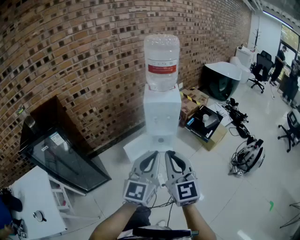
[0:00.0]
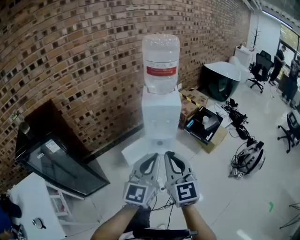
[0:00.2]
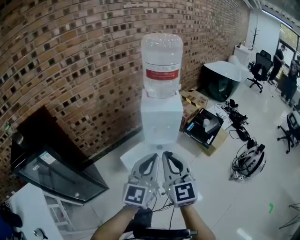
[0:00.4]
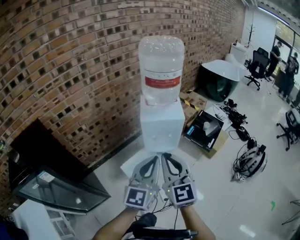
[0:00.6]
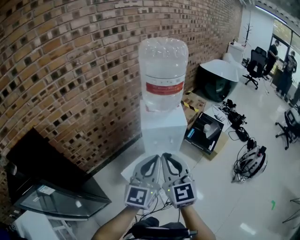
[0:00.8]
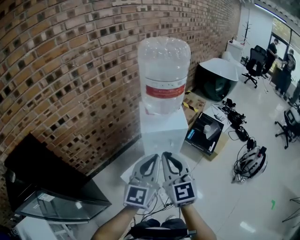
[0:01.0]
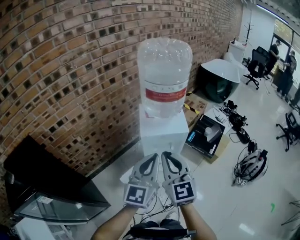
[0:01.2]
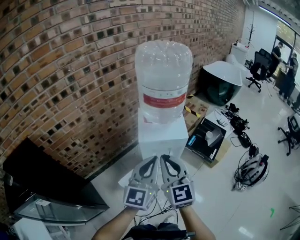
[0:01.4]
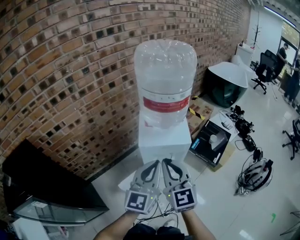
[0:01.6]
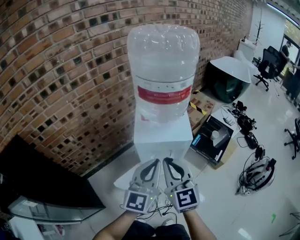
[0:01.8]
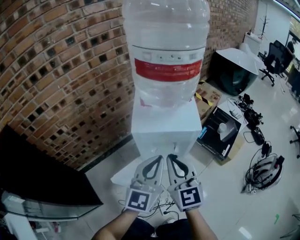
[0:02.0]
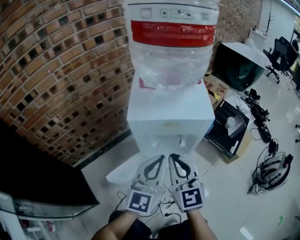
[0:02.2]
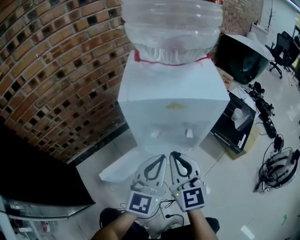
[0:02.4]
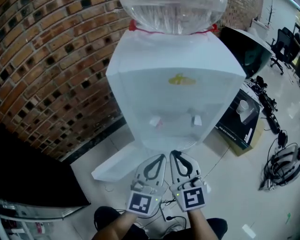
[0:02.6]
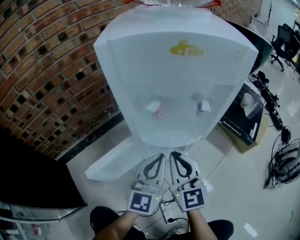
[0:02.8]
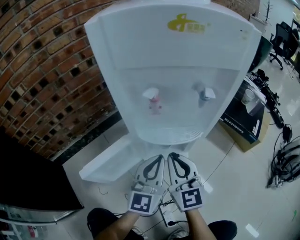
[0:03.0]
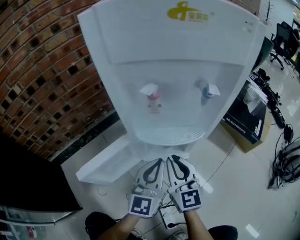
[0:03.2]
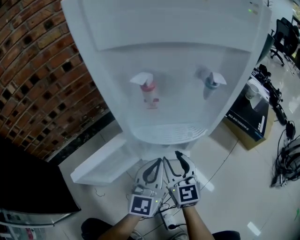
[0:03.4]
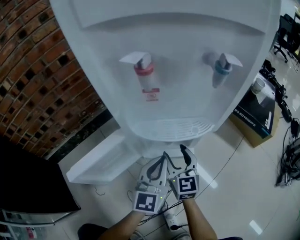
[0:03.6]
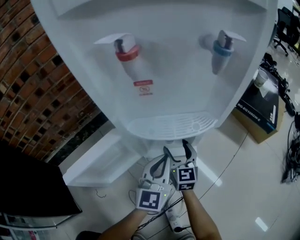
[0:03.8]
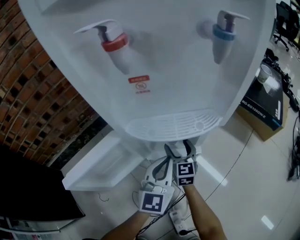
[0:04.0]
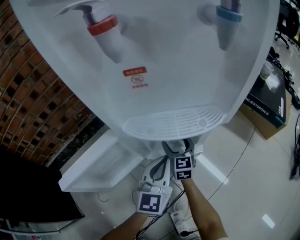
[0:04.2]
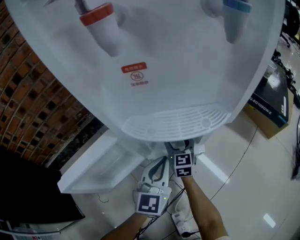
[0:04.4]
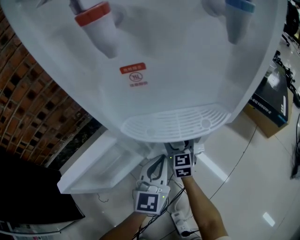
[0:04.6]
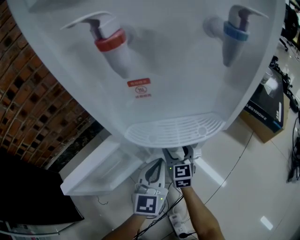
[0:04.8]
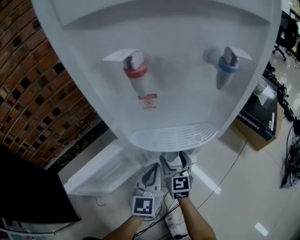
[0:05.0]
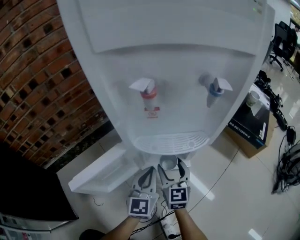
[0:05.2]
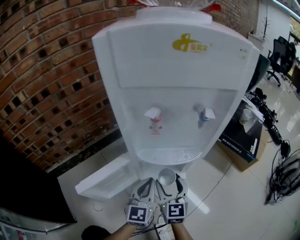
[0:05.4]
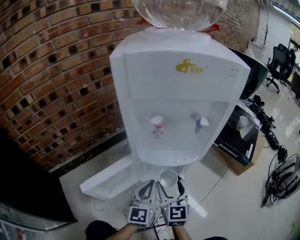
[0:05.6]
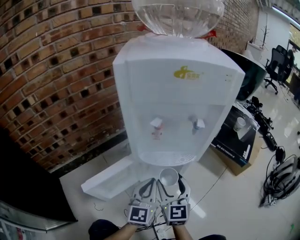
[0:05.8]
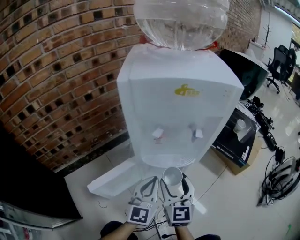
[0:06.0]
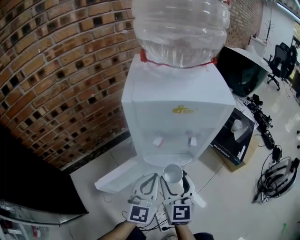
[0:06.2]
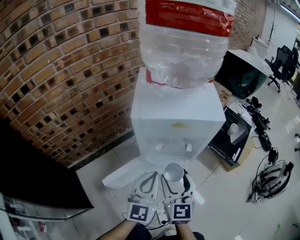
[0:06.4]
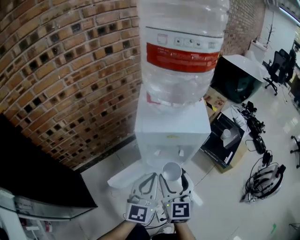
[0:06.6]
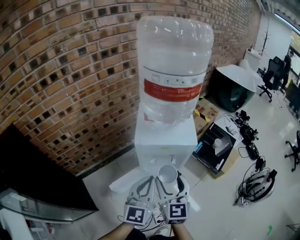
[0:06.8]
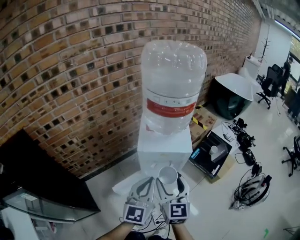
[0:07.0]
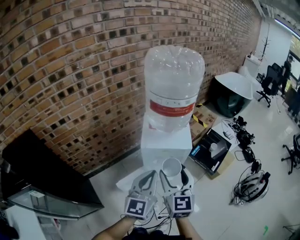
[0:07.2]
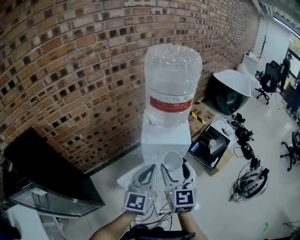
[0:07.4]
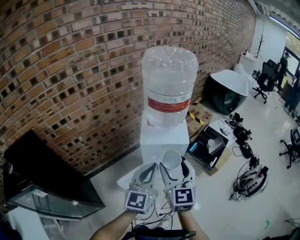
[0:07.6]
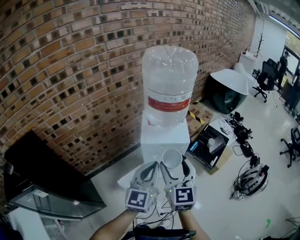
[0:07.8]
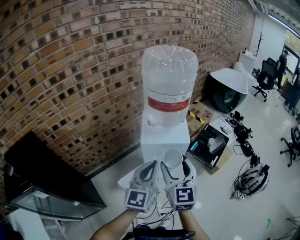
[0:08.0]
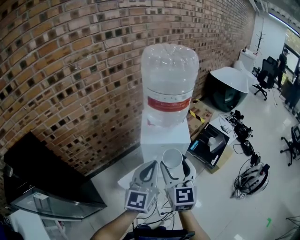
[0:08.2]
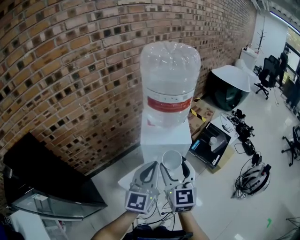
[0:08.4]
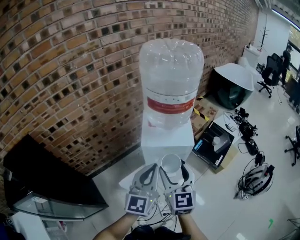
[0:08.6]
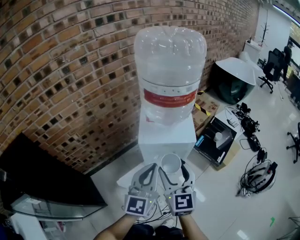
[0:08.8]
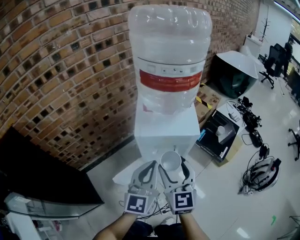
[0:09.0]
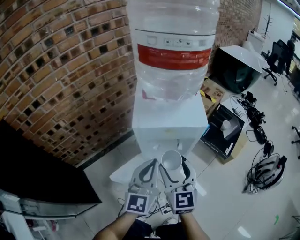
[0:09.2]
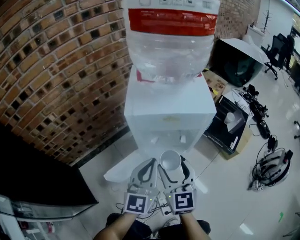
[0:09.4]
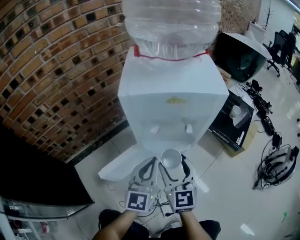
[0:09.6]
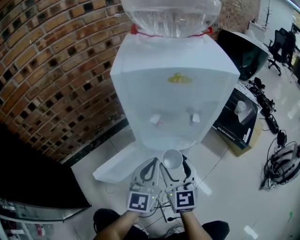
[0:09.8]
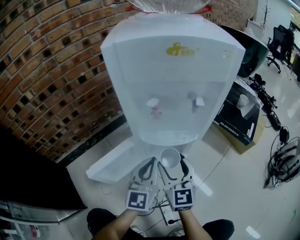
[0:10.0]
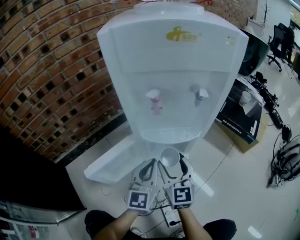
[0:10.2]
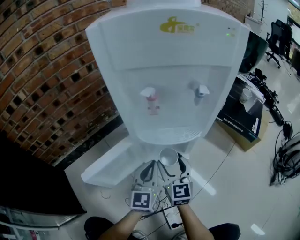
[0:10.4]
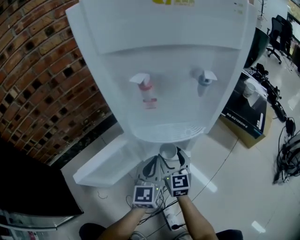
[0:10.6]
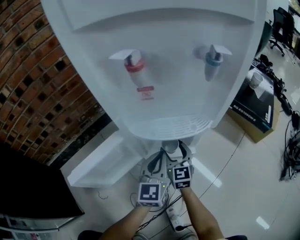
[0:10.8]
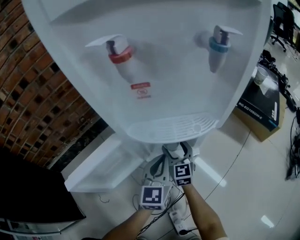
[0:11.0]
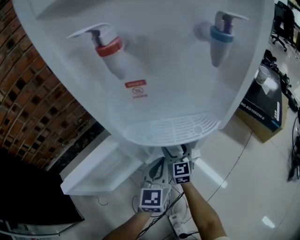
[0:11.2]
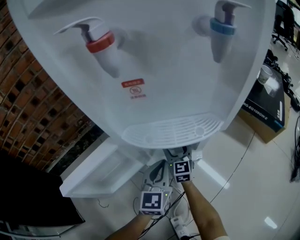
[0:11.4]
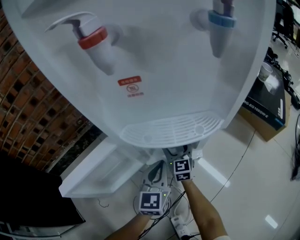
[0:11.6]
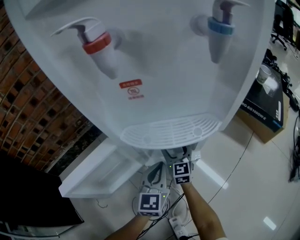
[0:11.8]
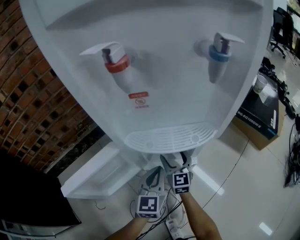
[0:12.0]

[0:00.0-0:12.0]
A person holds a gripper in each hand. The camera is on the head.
0:00.0 to 0:01.6: The grippers both shift forward by roughly 35 cm.
0:01.6 to 0:03.0: The two grippers go some 50 cm downward.
0:03.0 to 0:04.4: The right gripper moves downward and forward, about 35 cm, and opens its fingers; the left gripper moves downward, roughly 20 cm.
0:04.4 to 0:06.0: The right gripper is displaced upward and backward by some 35 cm, while the left gripper shifts some 20 cm upward.
0:06.0 to 0:07.6: The grippers both shift upward by approximately 50 cm.
0:07.6 to 0:09.0: The right gripper goes some 15 cm downward. The left gripper goes roughly 15 cm downward and forward.
0:09.0 to 0:10.4: Both grippers move downward, about 50 cm.
0:10.4 to 0:12.0: The right gripper shifts some 20 cm downward and forward, while the left gripper heads downward, covering about 15 cm.

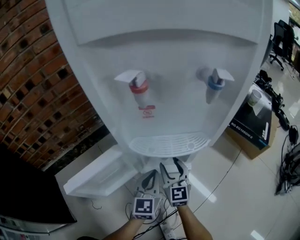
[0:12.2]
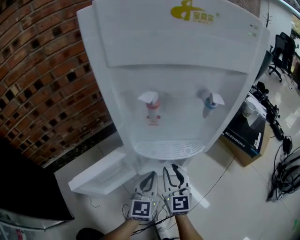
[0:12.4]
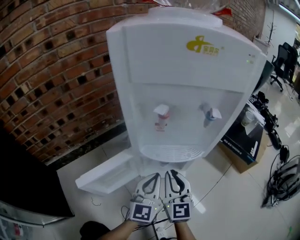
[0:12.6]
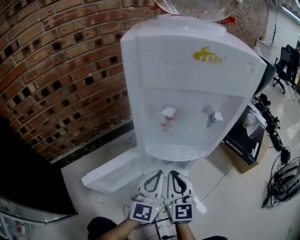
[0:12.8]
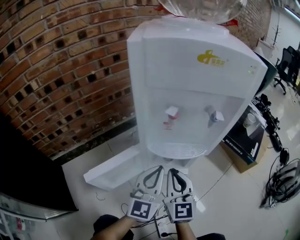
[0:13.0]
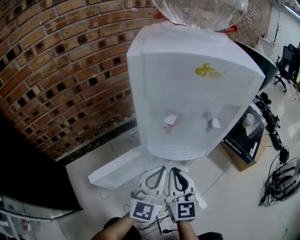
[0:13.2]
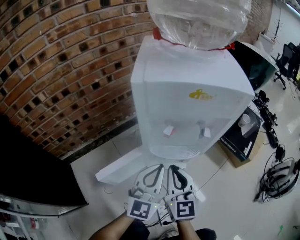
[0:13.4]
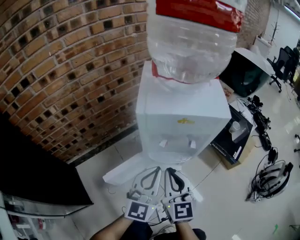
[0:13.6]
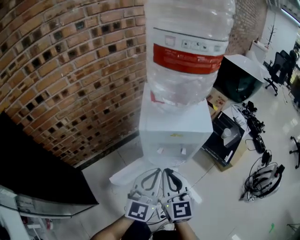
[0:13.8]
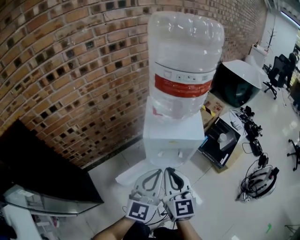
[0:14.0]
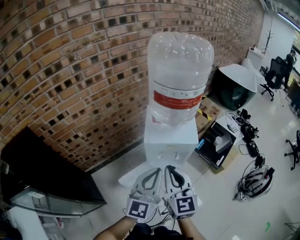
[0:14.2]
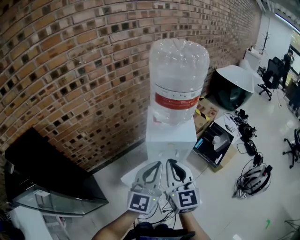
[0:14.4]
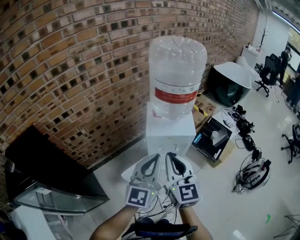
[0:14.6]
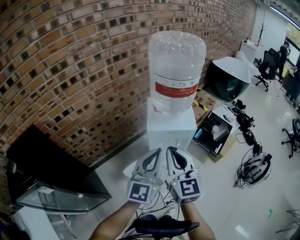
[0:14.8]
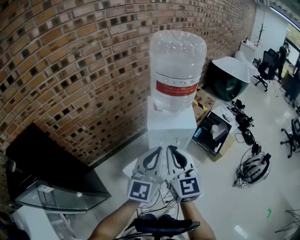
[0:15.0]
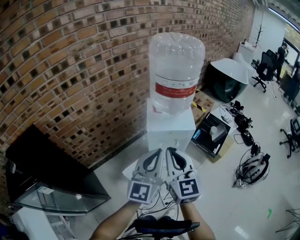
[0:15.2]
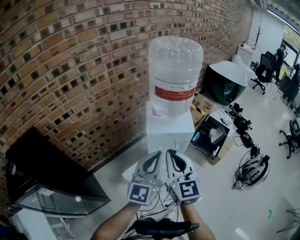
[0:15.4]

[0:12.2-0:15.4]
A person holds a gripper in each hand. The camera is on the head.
0:12.2 to 0:13.8: Both grippers move upward, approximately 50 cm. The right gripper closes its fingers.
0:13.8 to 0:15.4: The grippers both shift upward by some 25 cm.

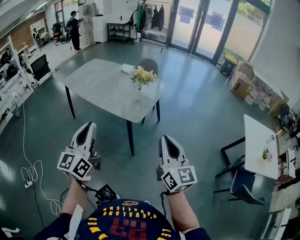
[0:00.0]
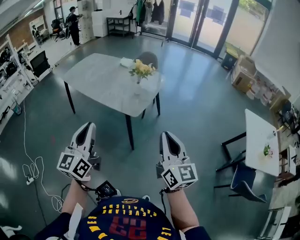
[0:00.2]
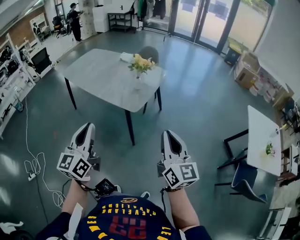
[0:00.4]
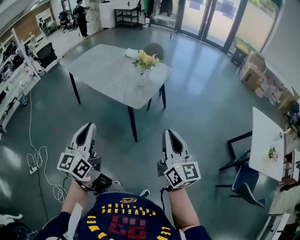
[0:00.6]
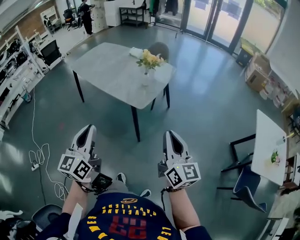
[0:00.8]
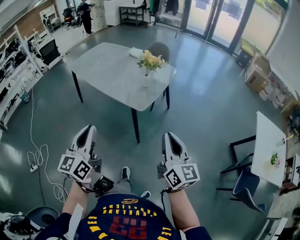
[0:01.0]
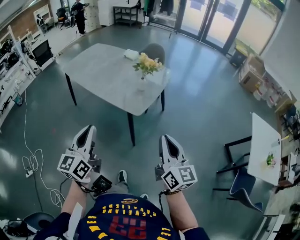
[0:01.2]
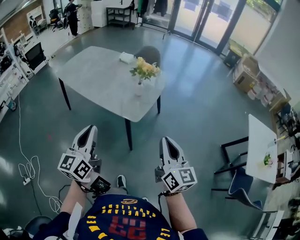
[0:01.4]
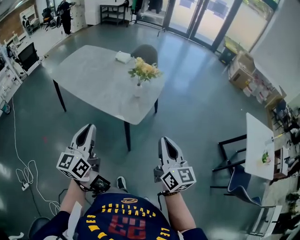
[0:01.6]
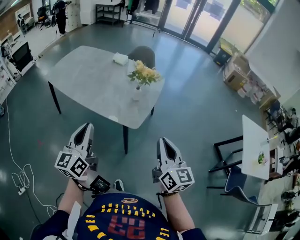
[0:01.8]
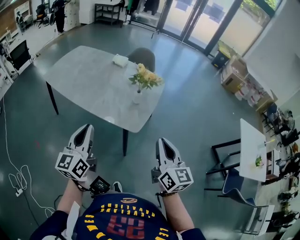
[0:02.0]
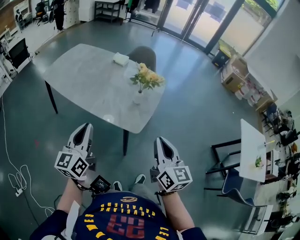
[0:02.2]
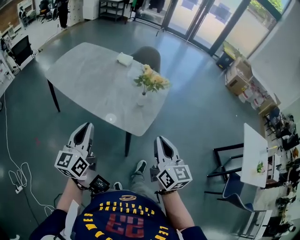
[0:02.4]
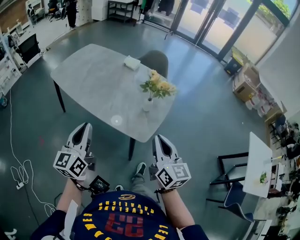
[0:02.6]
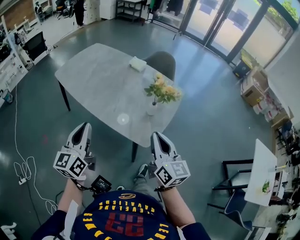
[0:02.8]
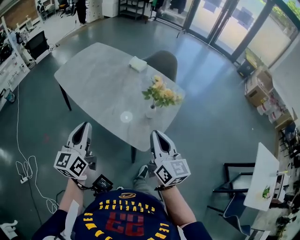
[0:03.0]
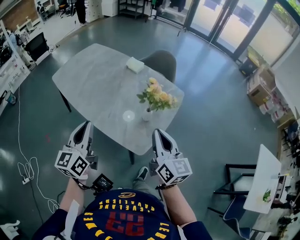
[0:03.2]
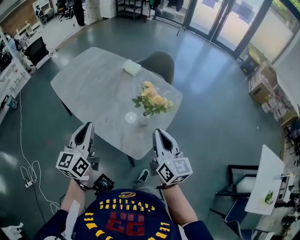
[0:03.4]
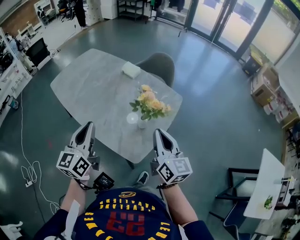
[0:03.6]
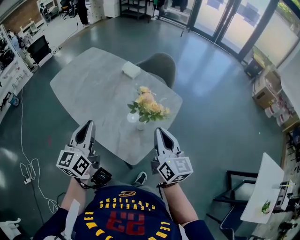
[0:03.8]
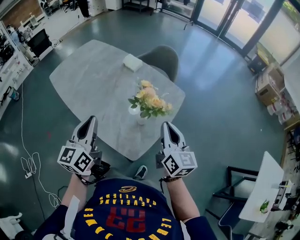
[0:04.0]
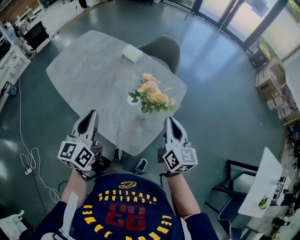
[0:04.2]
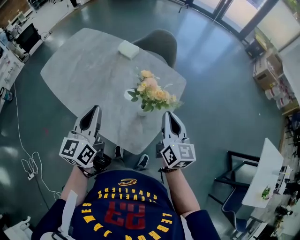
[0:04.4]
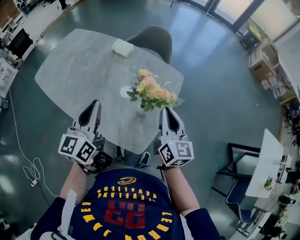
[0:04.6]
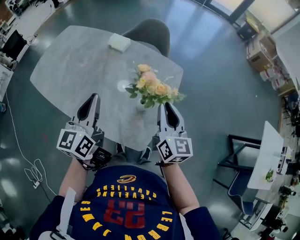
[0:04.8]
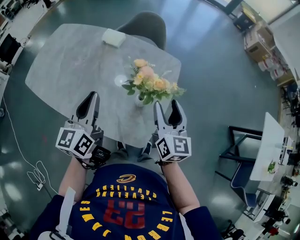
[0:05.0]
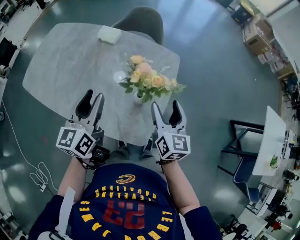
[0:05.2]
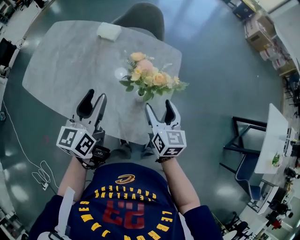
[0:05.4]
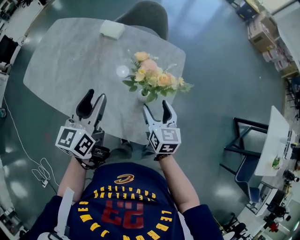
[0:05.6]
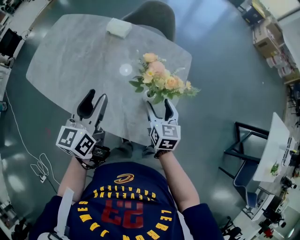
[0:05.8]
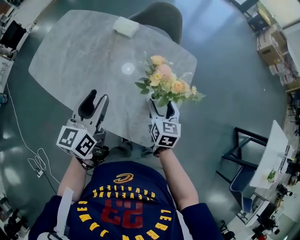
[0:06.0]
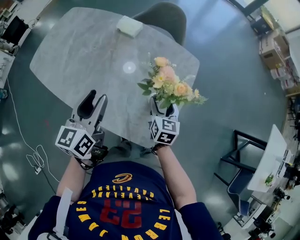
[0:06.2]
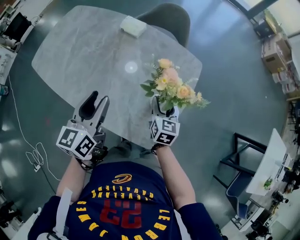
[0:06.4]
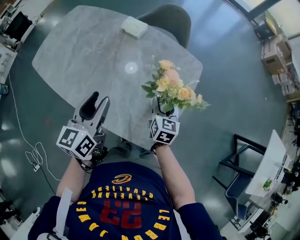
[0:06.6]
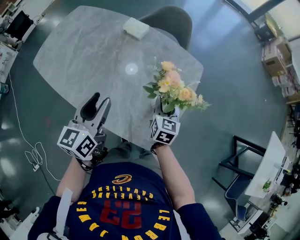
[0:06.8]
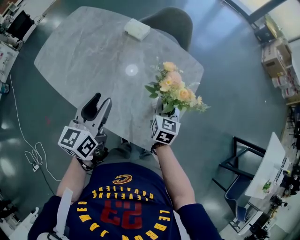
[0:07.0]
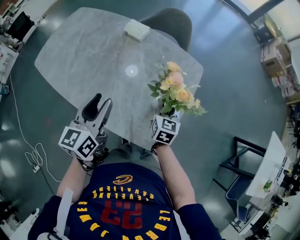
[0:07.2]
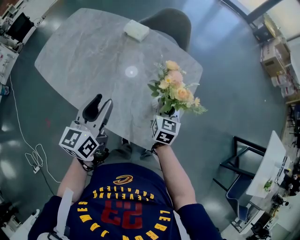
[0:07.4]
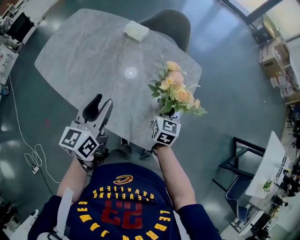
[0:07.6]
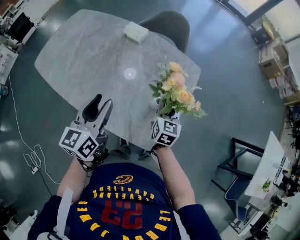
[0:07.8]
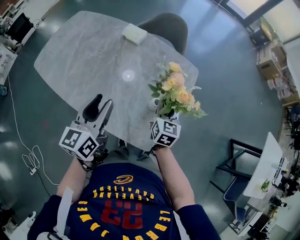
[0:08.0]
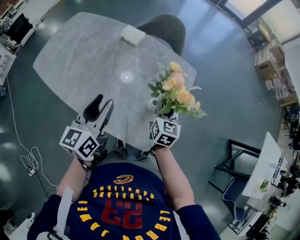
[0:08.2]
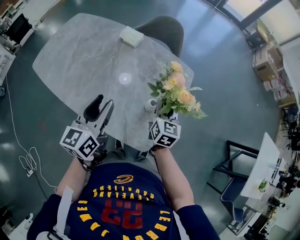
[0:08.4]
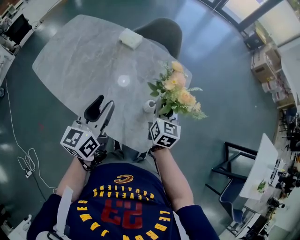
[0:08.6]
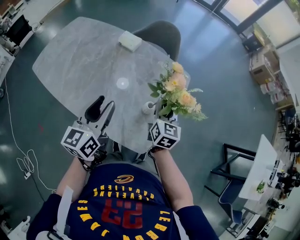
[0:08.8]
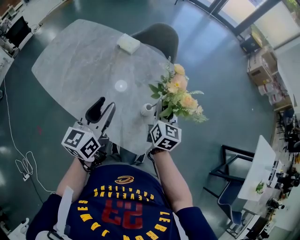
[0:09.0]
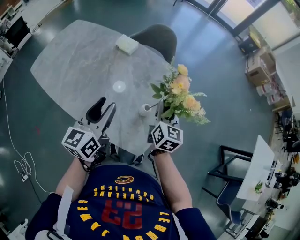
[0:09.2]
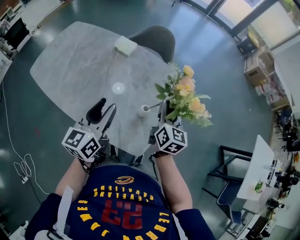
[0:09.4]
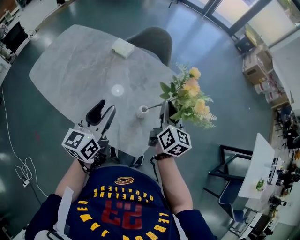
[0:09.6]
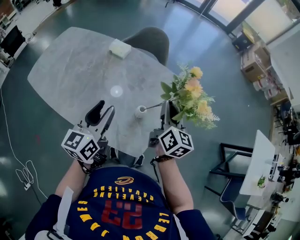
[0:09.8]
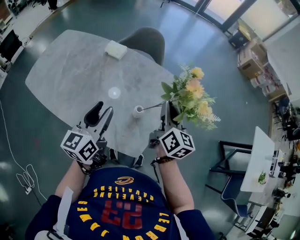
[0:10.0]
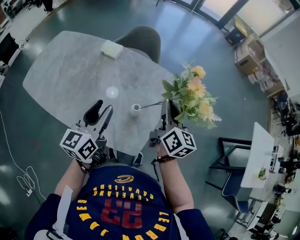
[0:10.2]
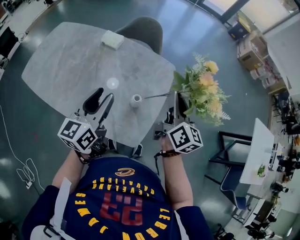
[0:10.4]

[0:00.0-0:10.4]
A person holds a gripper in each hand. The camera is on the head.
0:00.0 to 0:01.4: The two grippers go some 15 cm forward and downward.
0:01.4 to 0:03.0: Both grippers travel together forward, about 25 cm.
0:03.0 to 0:04.4: The grippers both shift forward and to the right by roughly 20 cm.
0:04.4 to 0:06.0: The right gripper shifts approximately 20 cm downward and to the left, turns by approximately 20 degrees, and opens. Meanwhile the left gripper heads forward and downward, covering roughly 10 cm, and opens up.
0:06.0 to 0:07.4: The right gripper closes its fingers.
0:07.4 to 0:09.0: The right gripper is displaced upward by some 10 cm.
0:09.0 to 0:10.4: The left gripper ends up about 5 cm from where it was. Meanwhile the right gripper shifts some 15 cm upward and to the right, and turns by roughly 20 degrees.
